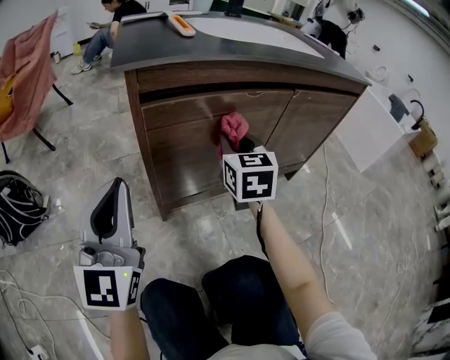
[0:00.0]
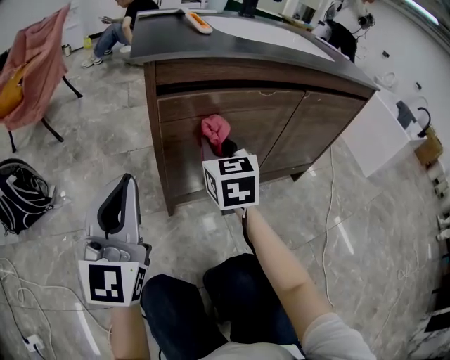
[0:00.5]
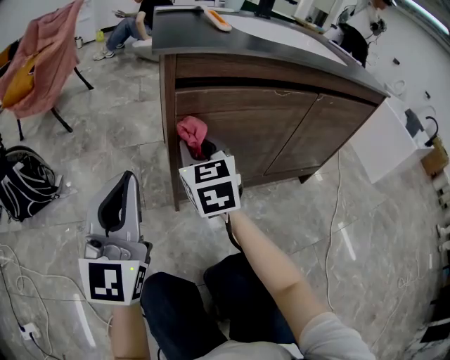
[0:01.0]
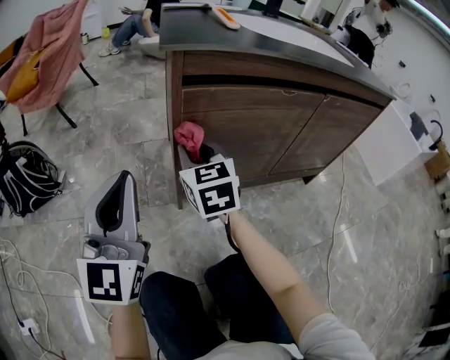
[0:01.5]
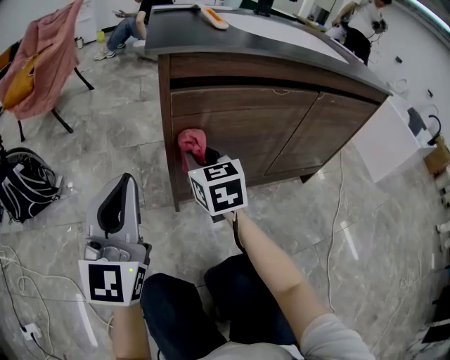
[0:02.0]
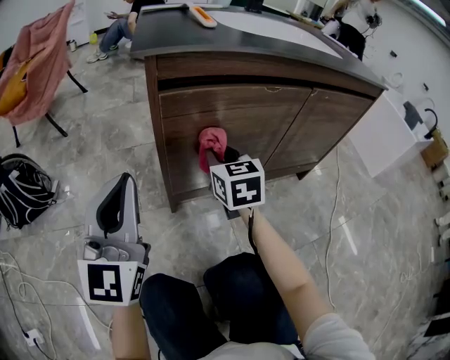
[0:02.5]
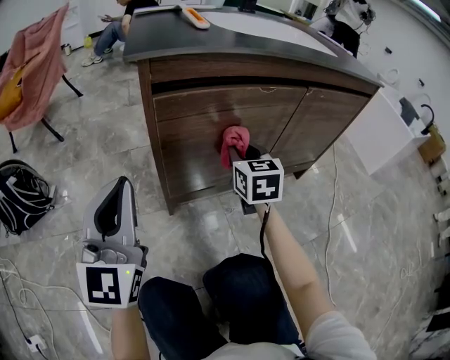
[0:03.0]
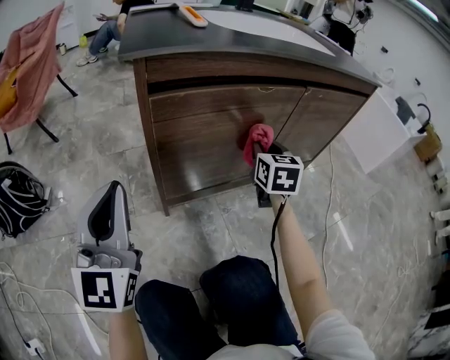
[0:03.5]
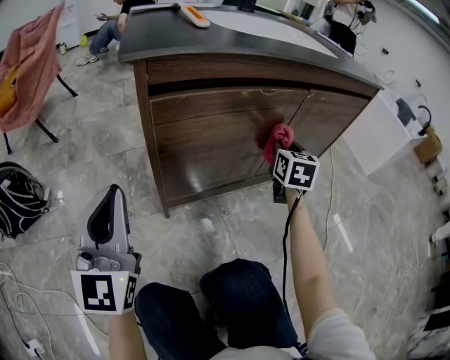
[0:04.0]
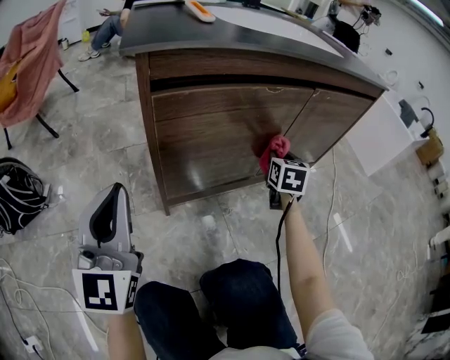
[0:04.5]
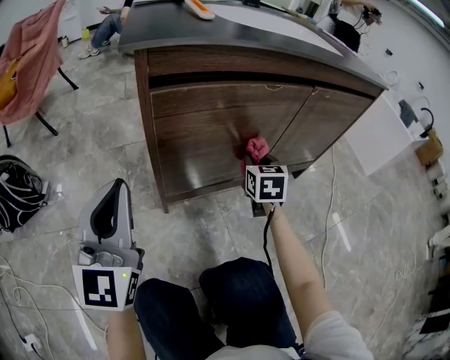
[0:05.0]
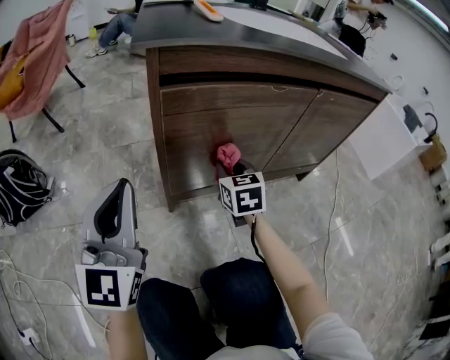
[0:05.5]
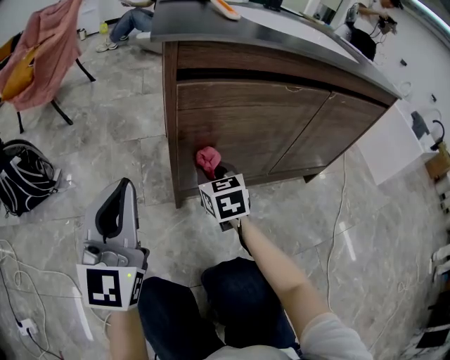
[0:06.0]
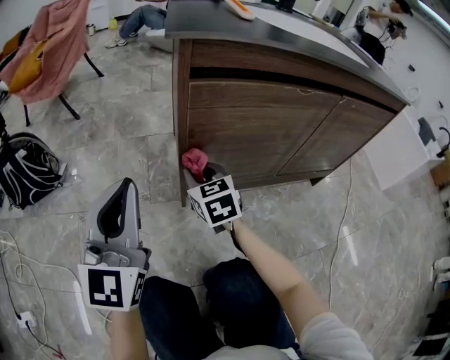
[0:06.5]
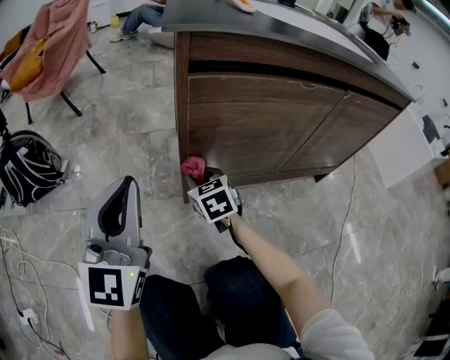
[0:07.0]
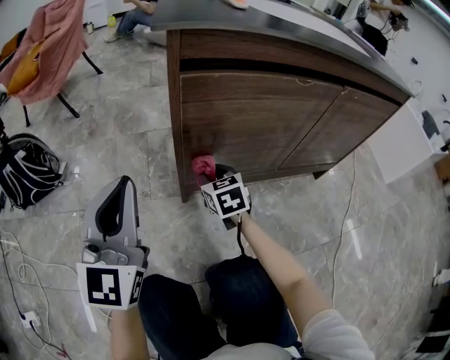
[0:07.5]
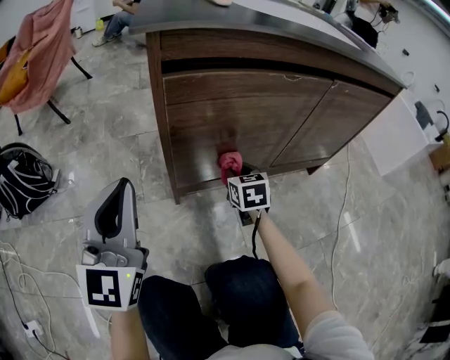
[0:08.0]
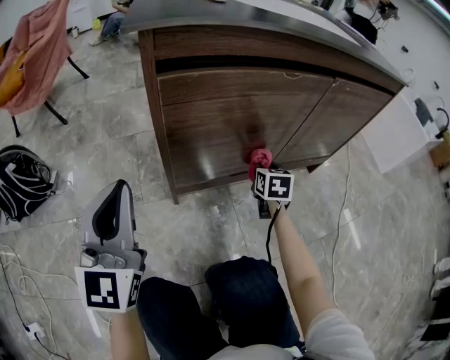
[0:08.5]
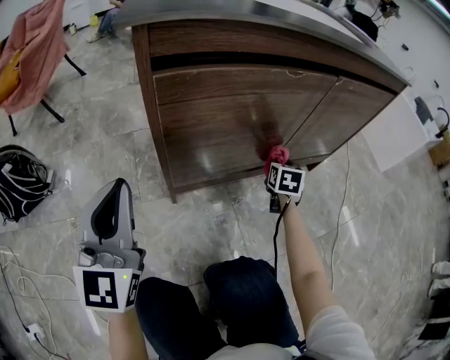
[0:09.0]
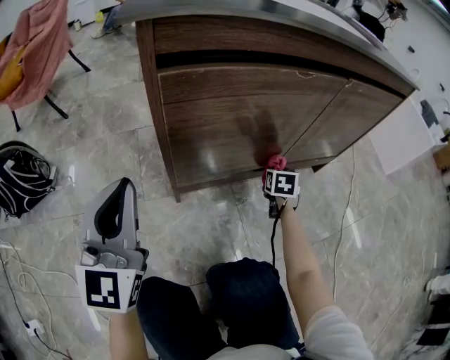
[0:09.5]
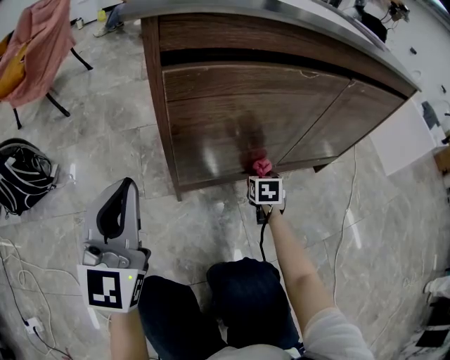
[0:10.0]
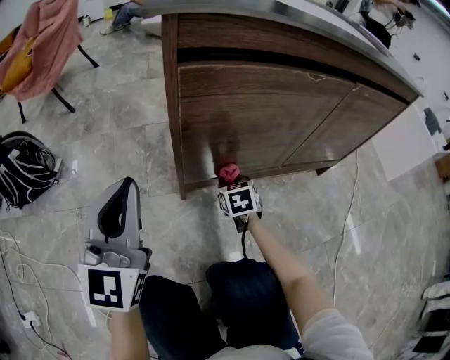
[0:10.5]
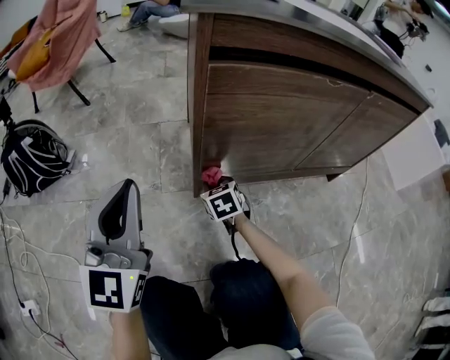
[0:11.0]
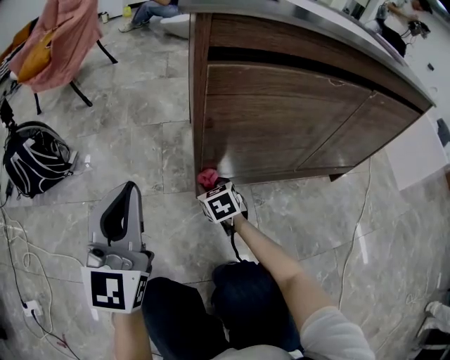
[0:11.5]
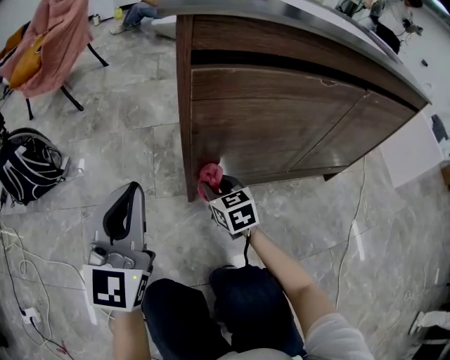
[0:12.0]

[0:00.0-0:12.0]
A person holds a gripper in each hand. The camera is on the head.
0:00.0 to 0:02.0: The right gripper heads to the left, covering roughly 15 cm.
0:02.0 to 0:04.0: The right gripper heads to the right, covering approximately 30 cm, and swivels some 30 degrees.
0:04.0 to 0:06.0: The right gripper goes some 25 cm to the left, and rotates roughly 30 degrees.
0:06.0 to 0:08.0: The right gripper moves to the right and downward, about 10 cm.
0:08.0 to 0:10.0: The right gripper goes about 15 cm to the right and downward.
0:10.0 to 0:12.0: The right gripper goes approximately 25 cm to the left, and rotates roughly 40 degrees.

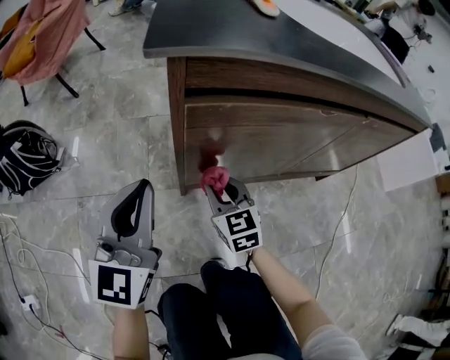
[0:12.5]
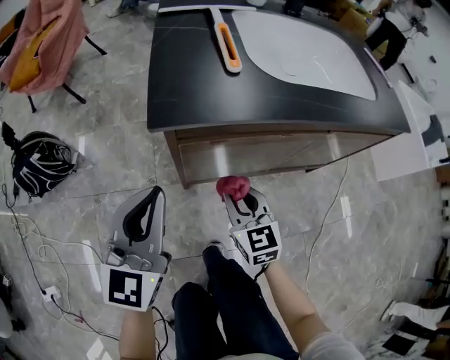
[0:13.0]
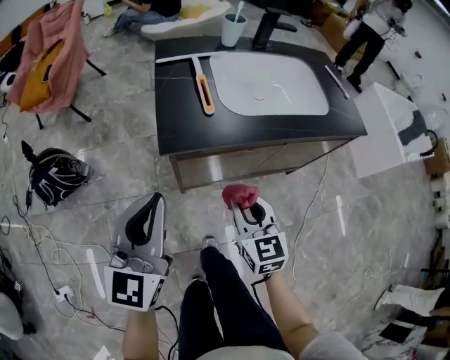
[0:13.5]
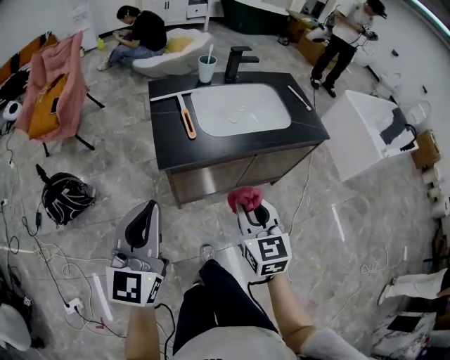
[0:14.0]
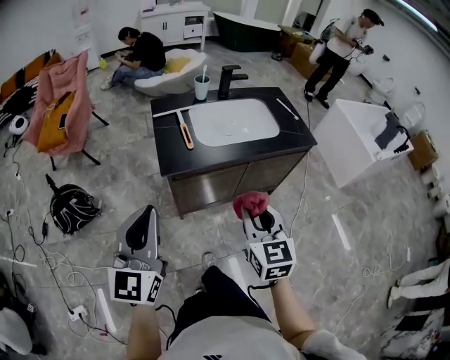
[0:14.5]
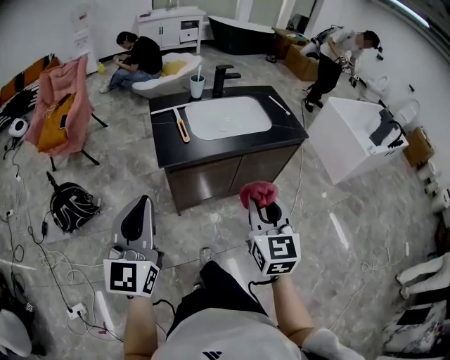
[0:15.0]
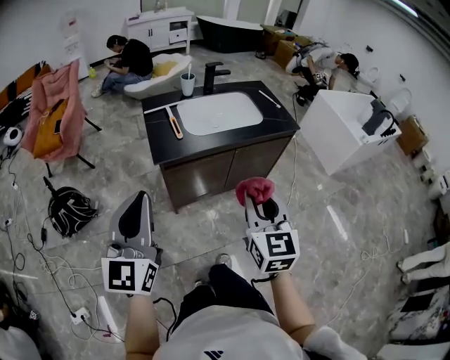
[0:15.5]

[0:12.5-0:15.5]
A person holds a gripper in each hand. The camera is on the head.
0:12.5 to 0:14.0: Both grippers travel together upward, about 50 cm.
0:14.0 to 0:15.5: The right gripper is displaced backward, upward and to the right by approximately 20 cm; the left gripper travels backward and upward by some 15 cm.

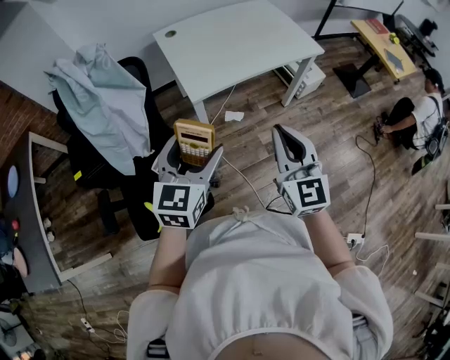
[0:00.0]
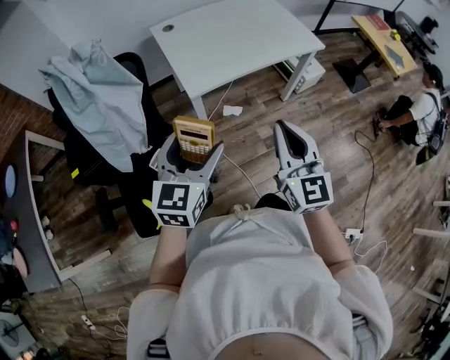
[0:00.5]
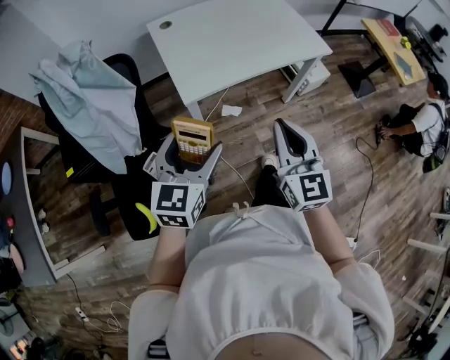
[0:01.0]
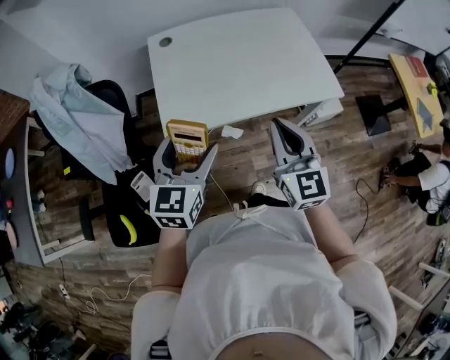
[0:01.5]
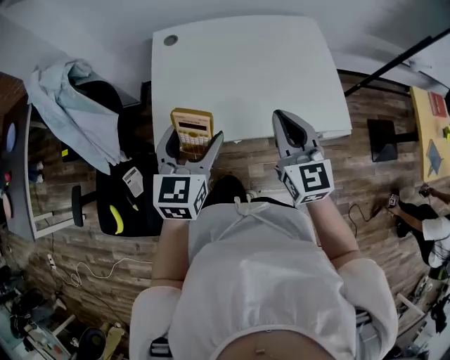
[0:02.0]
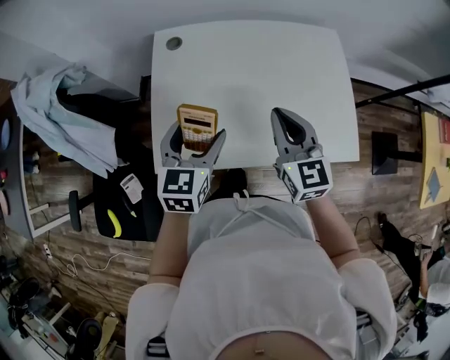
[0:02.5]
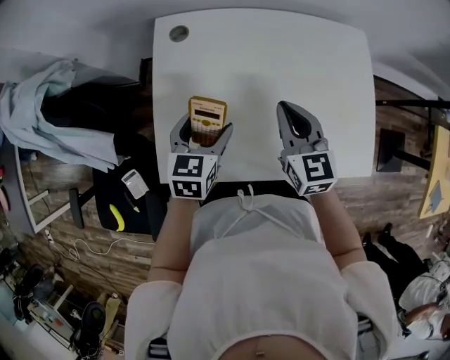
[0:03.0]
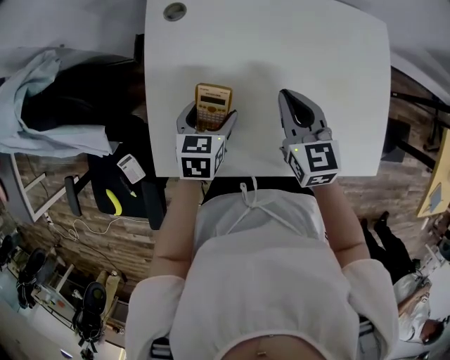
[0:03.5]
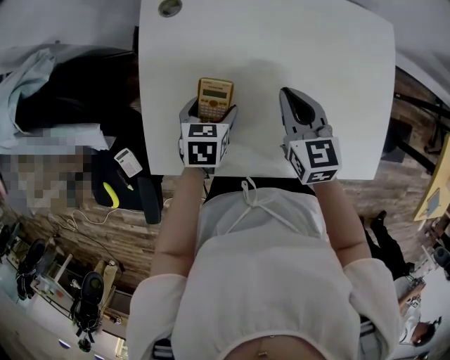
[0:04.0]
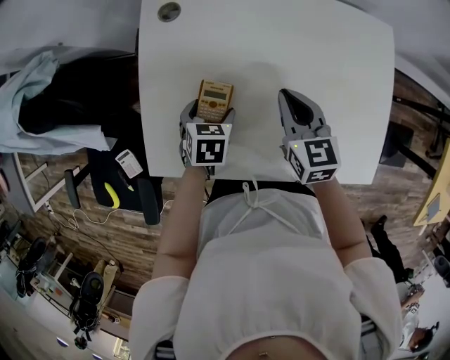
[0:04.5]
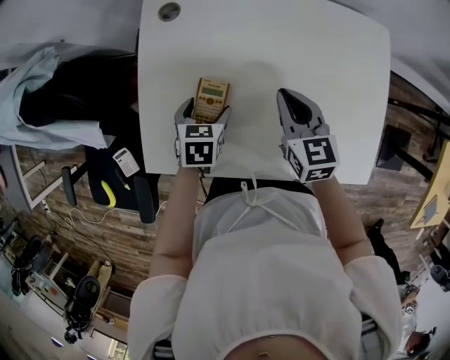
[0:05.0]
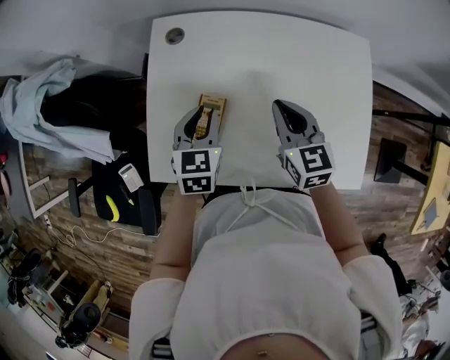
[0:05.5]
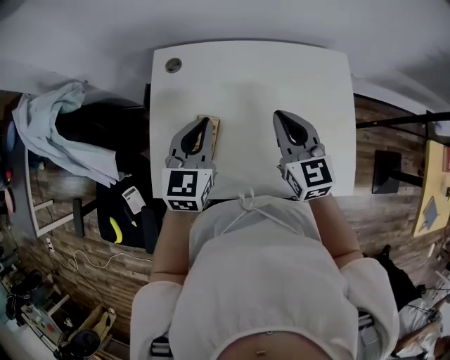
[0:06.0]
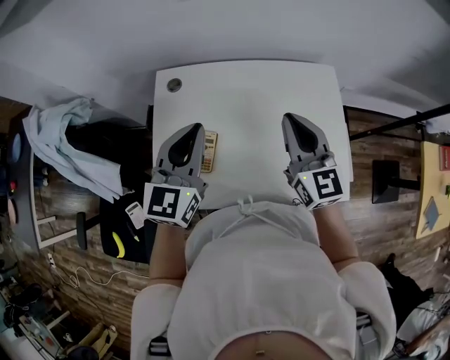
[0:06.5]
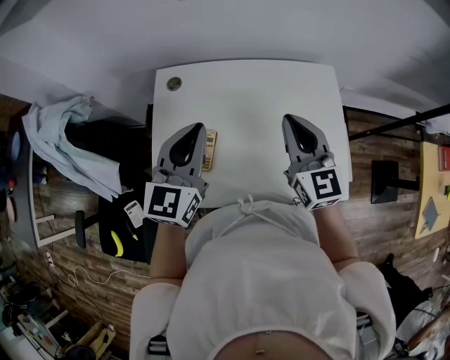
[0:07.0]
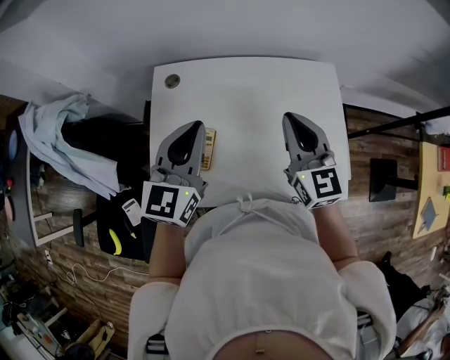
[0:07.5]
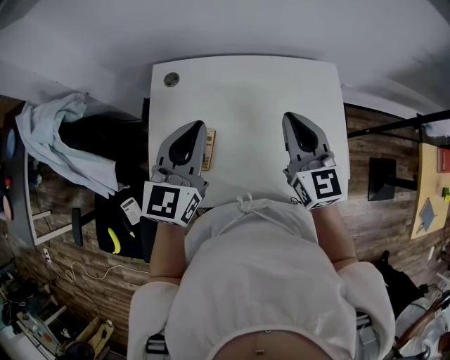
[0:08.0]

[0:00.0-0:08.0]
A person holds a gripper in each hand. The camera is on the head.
0:00.0 to 0:02.0: The right gripper moves forward, about 40 cm, and swivels roughly 20 degrees. Meanwhile the left gripper heads forward and to the right, covering approximately 40 cm, and rotates about 20 degrees.
0:02.0 to 0:04.0: The right gripper goes roughly 35 cm forward and downward, and swivels about 30 degrees. The left gripper is displaced downward and forward by some 35 cm, and angles its fingers downward, by about 40 degrees.
0:04.0 to 0:06.0: The left gripper moves upward, some 25 cm, tilts its fingers about 40 degrees upward, and closes its fingers. Meanwhile the right gripper is displaced upward by about 15 cm.
0:06.0 to 0:08.0: The two grippers go roughly 10 cm upward.

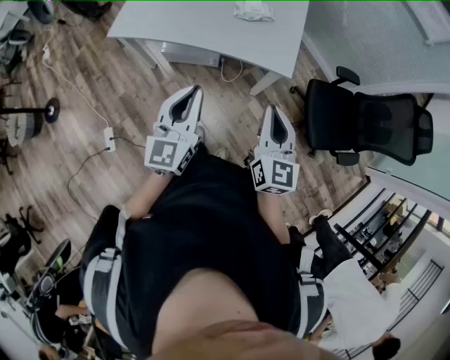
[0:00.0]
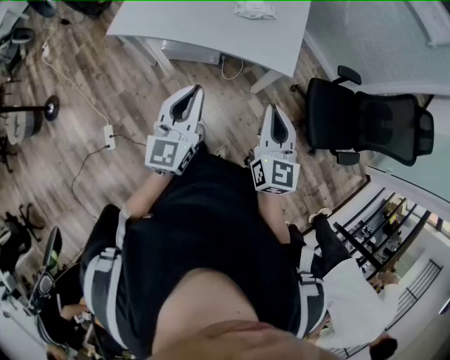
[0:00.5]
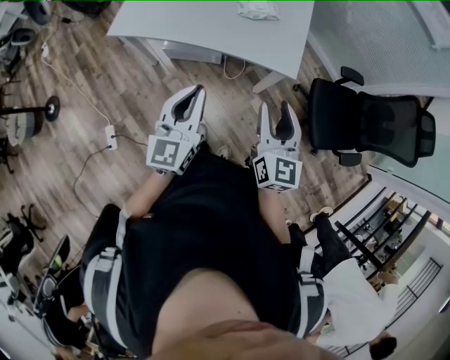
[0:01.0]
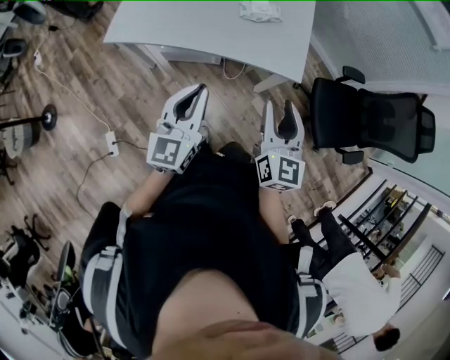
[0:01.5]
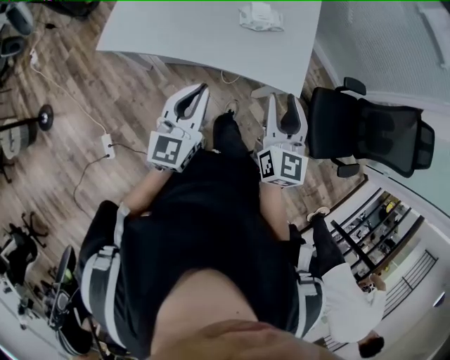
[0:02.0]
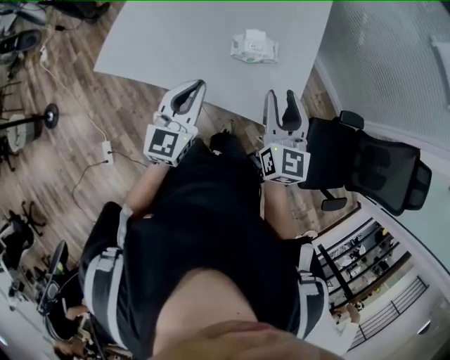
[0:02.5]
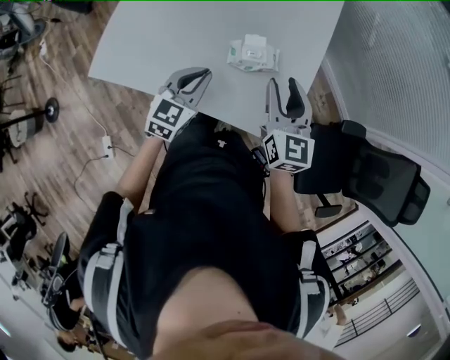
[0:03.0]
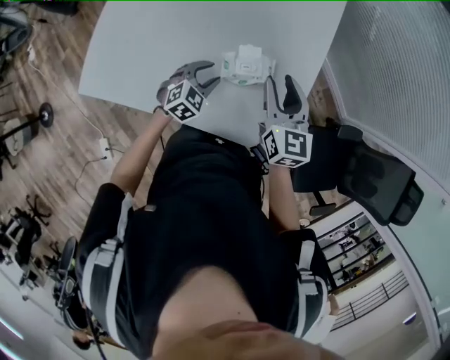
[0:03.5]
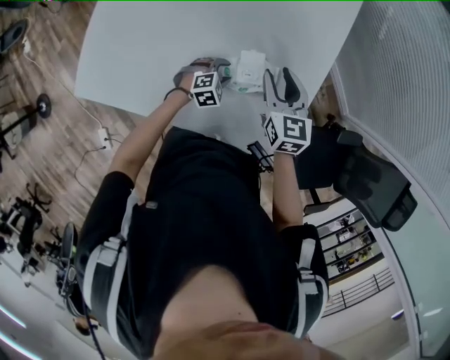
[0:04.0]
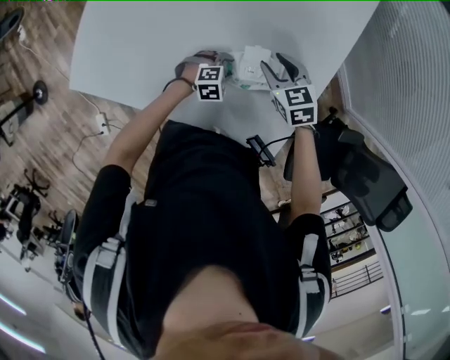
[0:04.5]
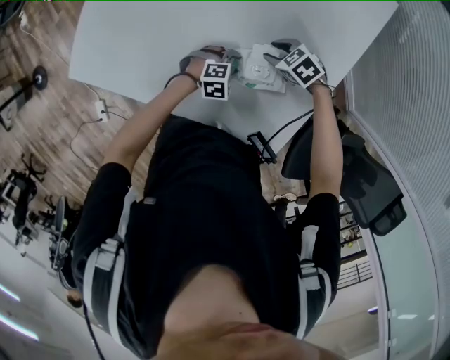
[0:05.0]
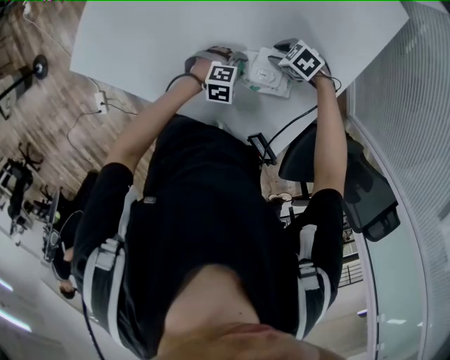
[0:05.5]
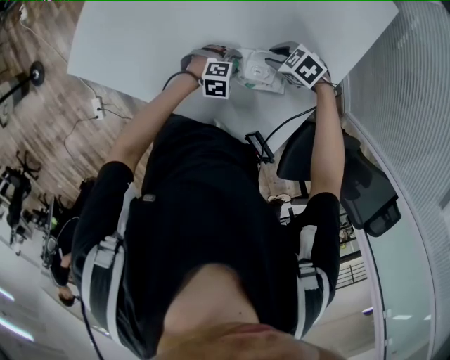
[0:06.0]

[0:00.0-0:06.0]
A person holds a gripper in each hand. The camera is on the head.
0:00.0 to 0:02.0: The grippers both shift forward by about 20 cm. The right gripper opens up.
0:02.0 to 0:04.0: The two grippers travel together, forward, about 50 cm. The right gripper changes its angle by approximately 30 degrees; the left gripper travels downward by about 35 cm, points its fingers about 50 degrees further downward, and opens up.
0:04.0 to 0:06.0: The right gripper goes roughly 20 cm downward, and turns by some 80 degrees.
